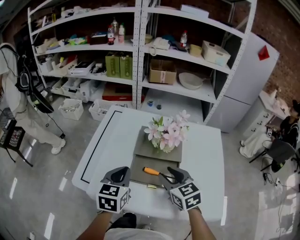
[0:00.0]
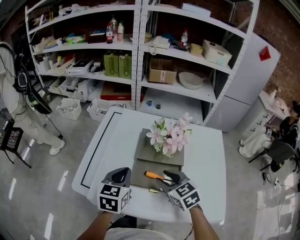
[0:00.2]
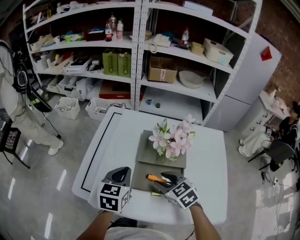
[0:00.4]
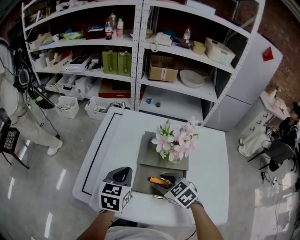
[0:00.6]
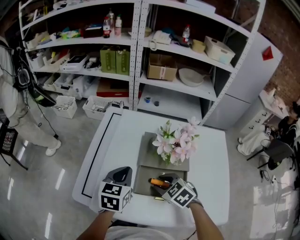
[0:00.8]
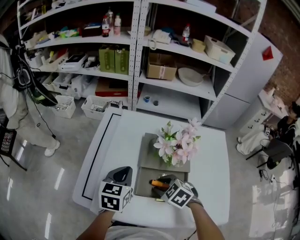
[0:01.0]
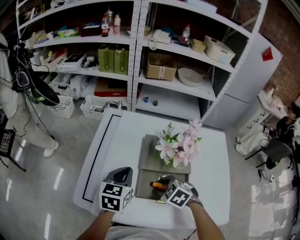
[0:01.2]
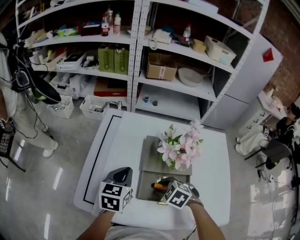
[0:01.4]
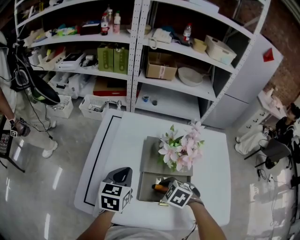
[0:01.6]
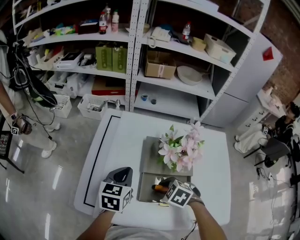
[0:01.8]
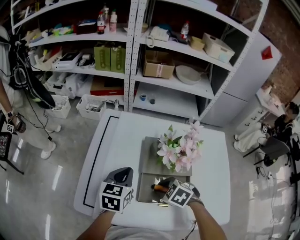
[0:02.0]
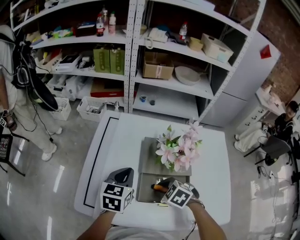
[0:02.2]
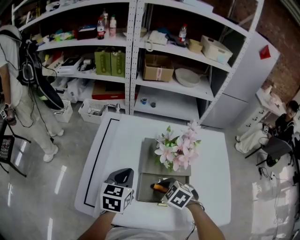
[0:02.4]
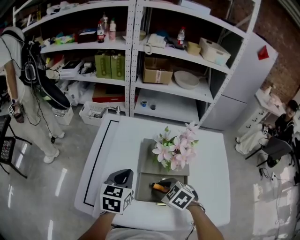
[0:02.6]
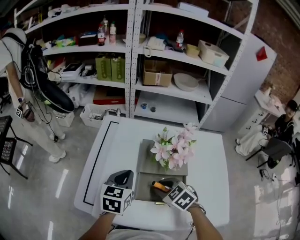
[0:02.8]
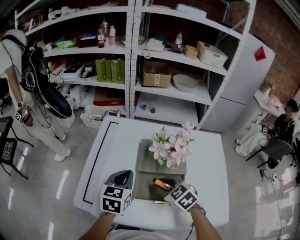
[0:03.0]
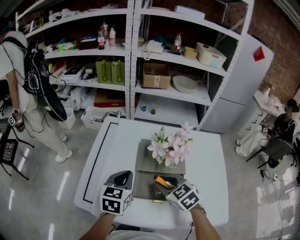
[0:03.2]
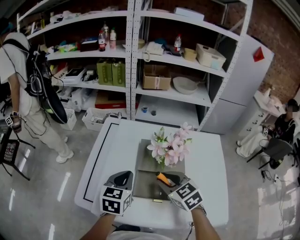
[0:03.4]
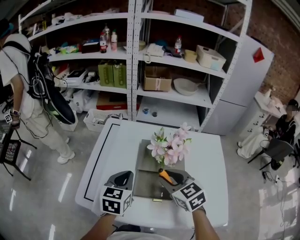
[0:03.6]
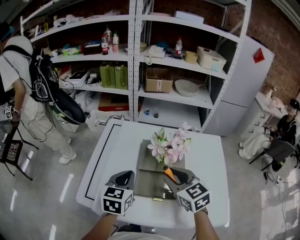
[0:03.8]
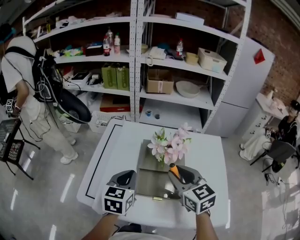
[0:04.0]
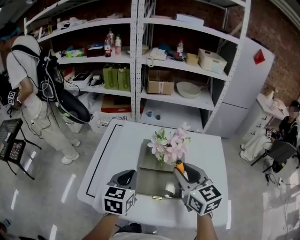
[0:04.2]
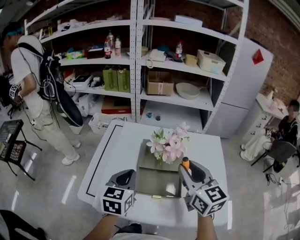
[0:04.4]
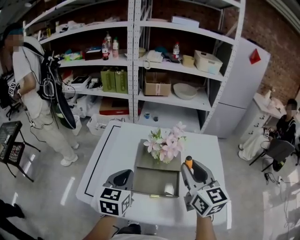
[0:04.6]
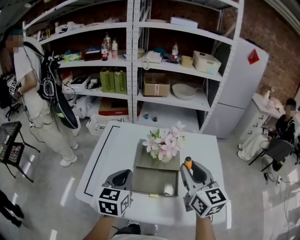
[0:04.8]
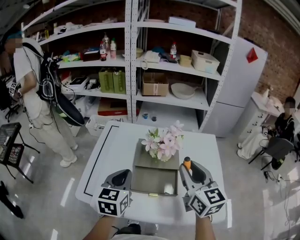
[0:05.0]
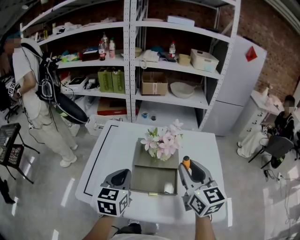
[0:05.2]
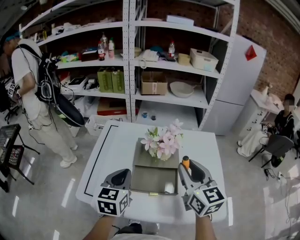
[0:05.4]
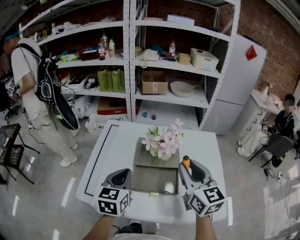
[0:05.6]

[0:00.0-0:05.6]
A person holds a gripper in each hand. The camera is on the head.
0:00.0 to 0:01.4: The left gripper moves forward, about 10 cm. Meanwhile the right gripper heads downward and to the left, covering some 15 cm, and angles its fingers downward, by approximately 40 degrees.
0:01.4 to 0:02.8: There are only small adjustments of the grippers.
0:02.8 to 0:04.2: The left gripper heads backward and upward, covering some 5 cm, while the right gripper is displaced upward by approximately 20 cm, and points its fingers roughly 40 degrees further upward.
0:04.2 to 0:05.6: The right gripper moves roughly 5 cm.

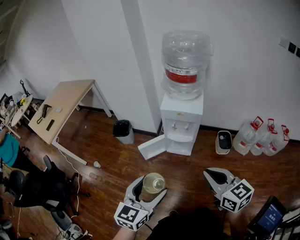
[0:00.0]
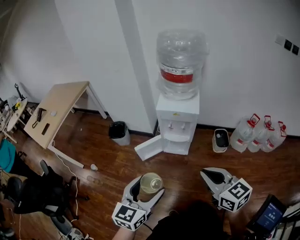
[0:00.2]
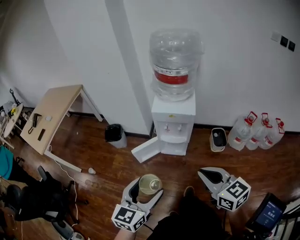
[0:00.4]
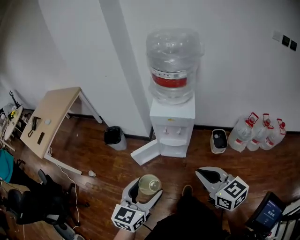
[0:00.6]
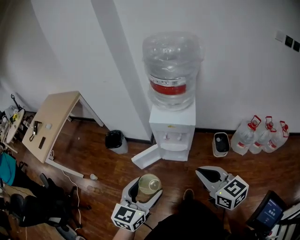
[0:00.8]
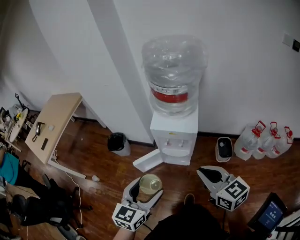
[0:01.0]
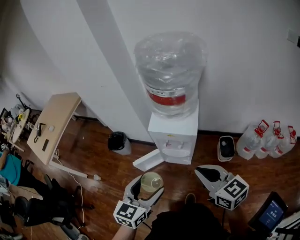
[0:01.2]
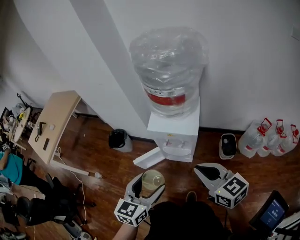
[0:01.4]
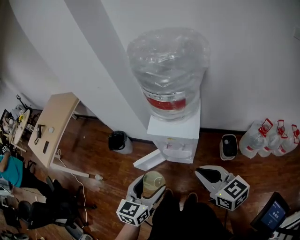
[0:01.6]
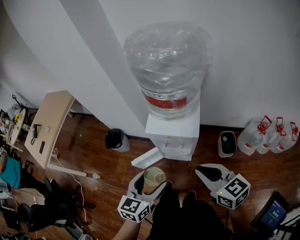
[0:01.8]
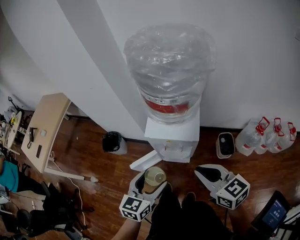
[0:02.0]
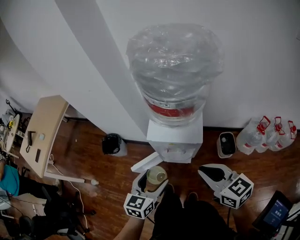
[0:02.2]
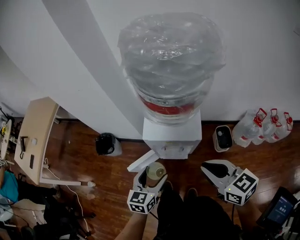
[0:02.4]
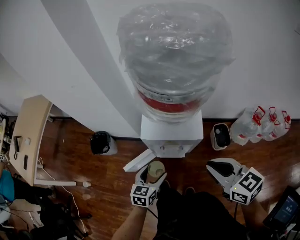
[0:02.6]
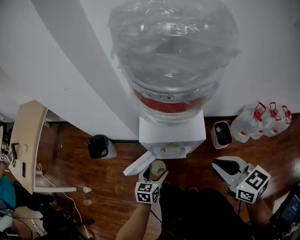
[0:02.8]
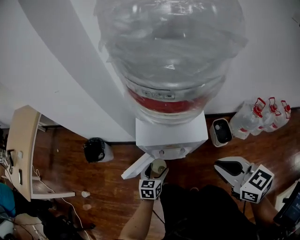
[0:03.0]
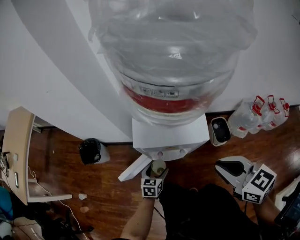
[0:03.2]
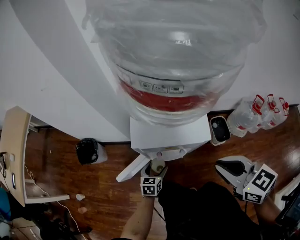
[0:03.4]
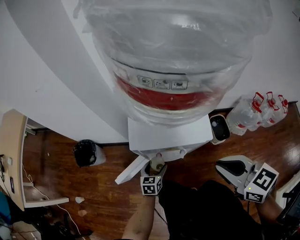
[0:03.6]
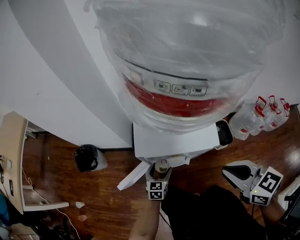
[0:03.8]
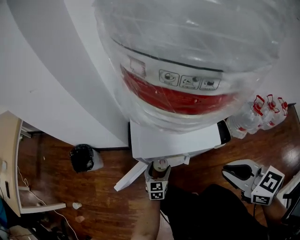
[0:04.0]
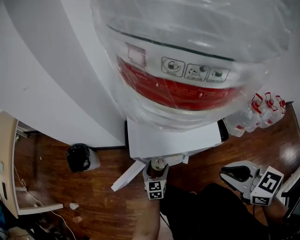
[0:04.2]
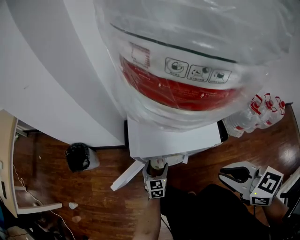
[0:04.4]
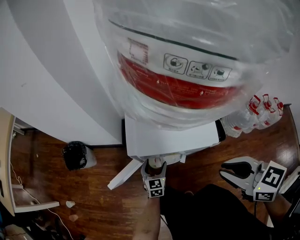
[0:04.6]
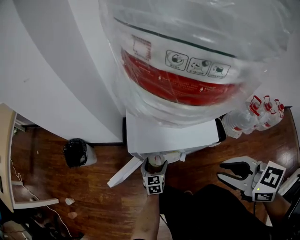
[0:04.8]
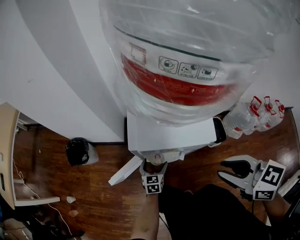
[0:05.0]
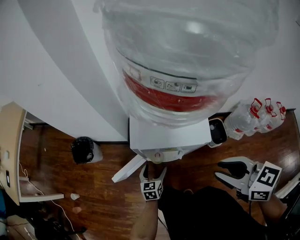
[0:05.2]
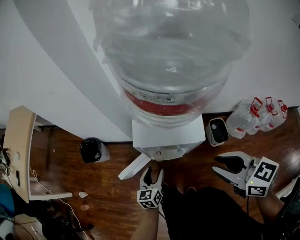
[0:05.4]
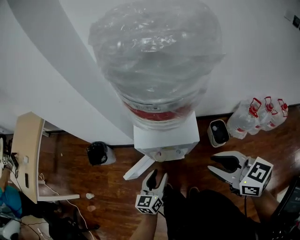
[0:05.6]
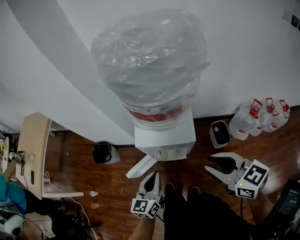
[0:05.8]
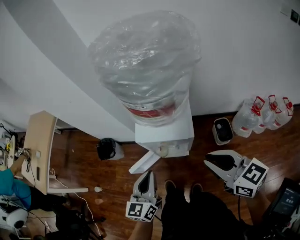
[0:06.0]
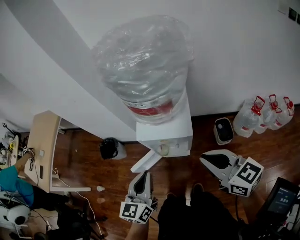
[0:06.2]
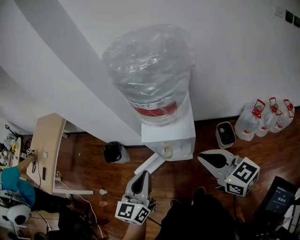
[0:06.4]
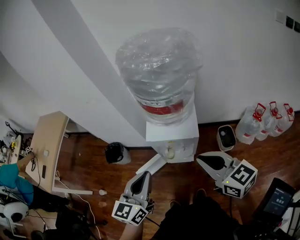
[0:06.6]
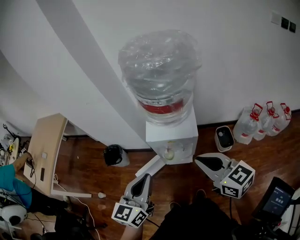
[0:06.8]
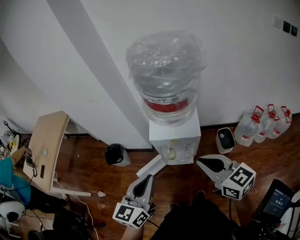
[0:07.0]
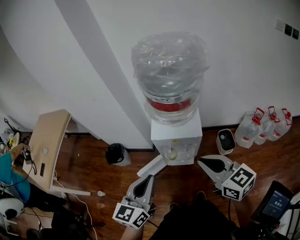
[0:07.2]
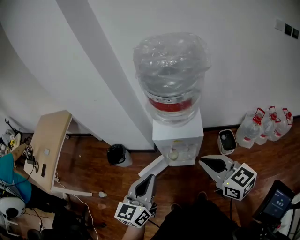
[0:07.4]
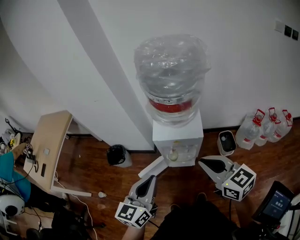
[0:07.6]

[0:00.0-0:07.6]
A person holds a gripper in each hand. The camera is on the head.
0:00.0 to 0:01.6: The grippers both shift forward by some 25 cm.
0:01.6 to 0:03.0: The right gripper is displaced forward and downward by about 15 cm, while the left gripper heads downward and forward, covering roughly 40 cm.
0:03.0 to 0:04.6: The left gripper shifts about 15 cm downward and forward. The right gripper is displaced downward by about 5 cm.
0:04.6 to 0:06.0: The left gripper heads upward, covering about 50 cm, rotates roughly 20 degrees, and closes up. The right gripper is displaced upward by about 15 cm.
0:06.0 to 0:07.6: The right gripper moves to the left and backward, some 10 cm. The left gripper is displaced upward, backward and to the left by some 15 cm.

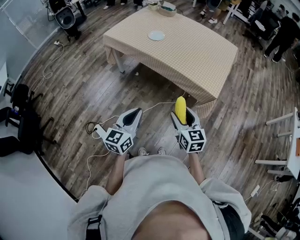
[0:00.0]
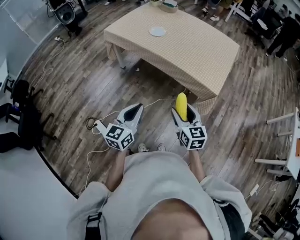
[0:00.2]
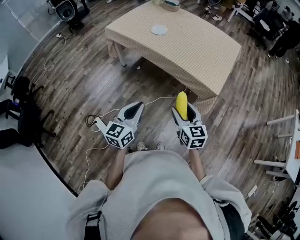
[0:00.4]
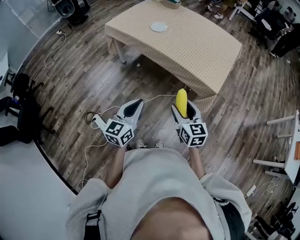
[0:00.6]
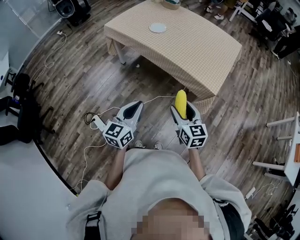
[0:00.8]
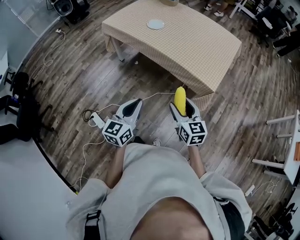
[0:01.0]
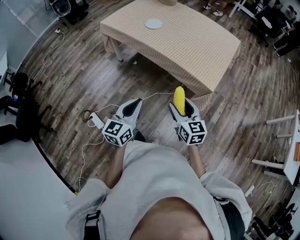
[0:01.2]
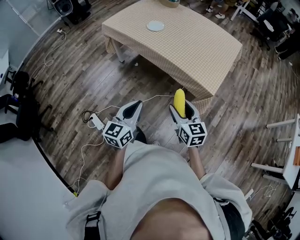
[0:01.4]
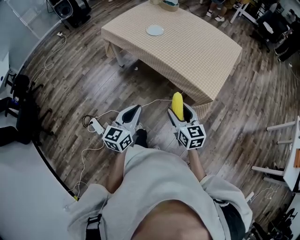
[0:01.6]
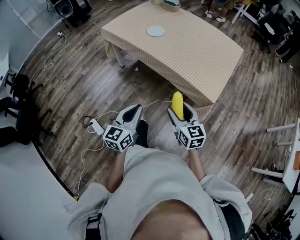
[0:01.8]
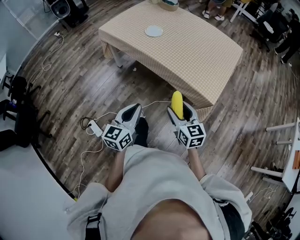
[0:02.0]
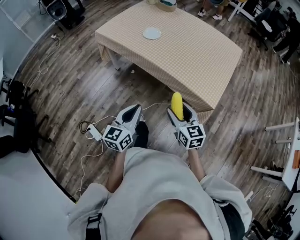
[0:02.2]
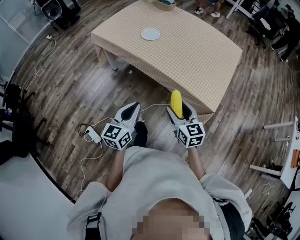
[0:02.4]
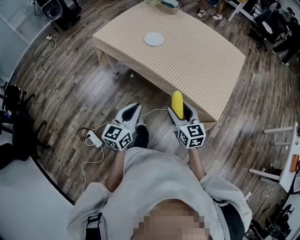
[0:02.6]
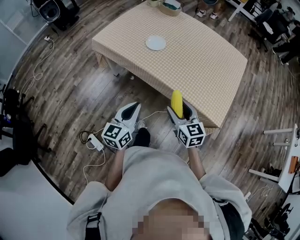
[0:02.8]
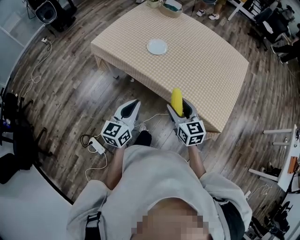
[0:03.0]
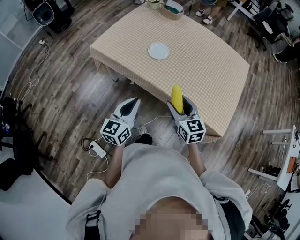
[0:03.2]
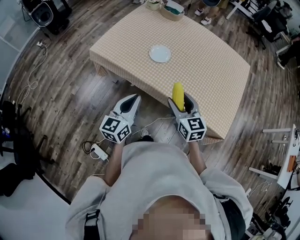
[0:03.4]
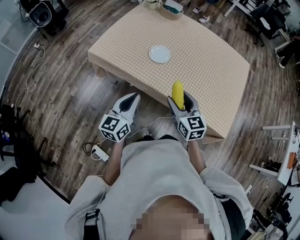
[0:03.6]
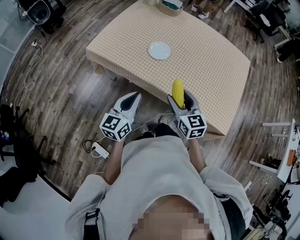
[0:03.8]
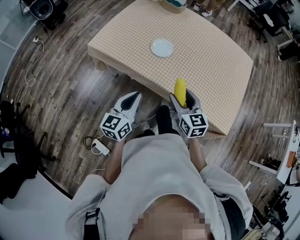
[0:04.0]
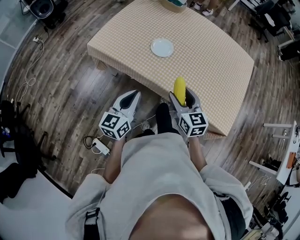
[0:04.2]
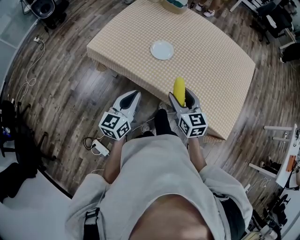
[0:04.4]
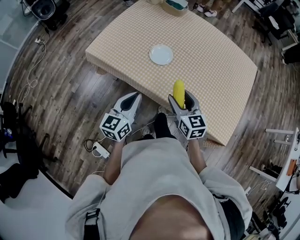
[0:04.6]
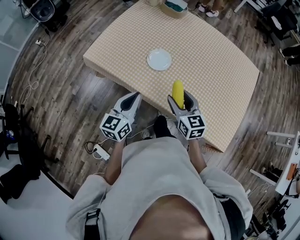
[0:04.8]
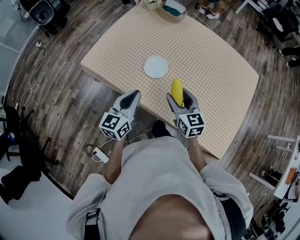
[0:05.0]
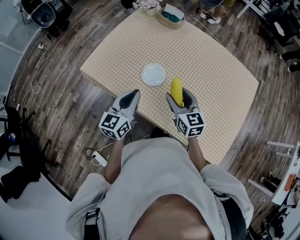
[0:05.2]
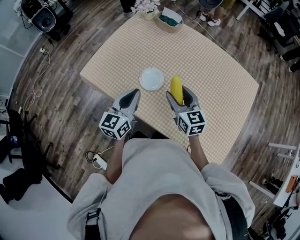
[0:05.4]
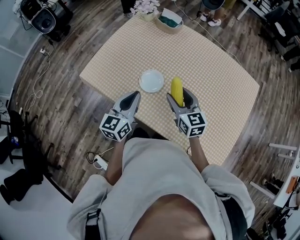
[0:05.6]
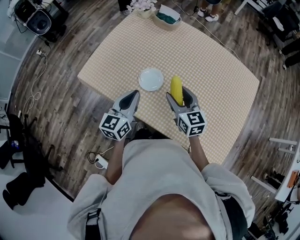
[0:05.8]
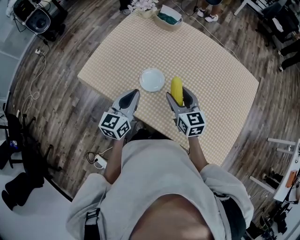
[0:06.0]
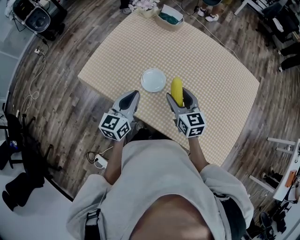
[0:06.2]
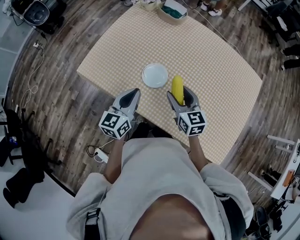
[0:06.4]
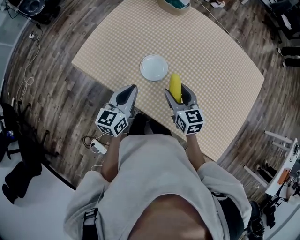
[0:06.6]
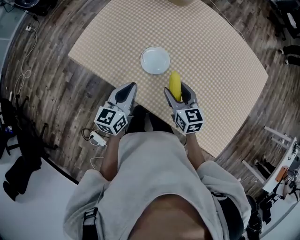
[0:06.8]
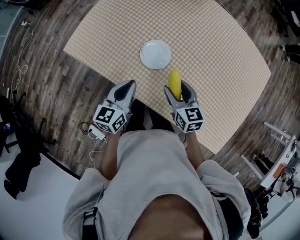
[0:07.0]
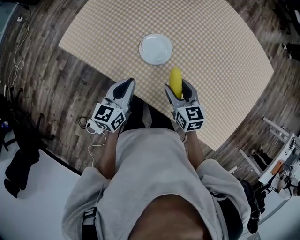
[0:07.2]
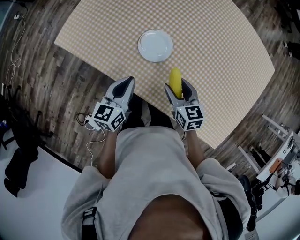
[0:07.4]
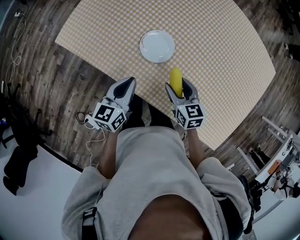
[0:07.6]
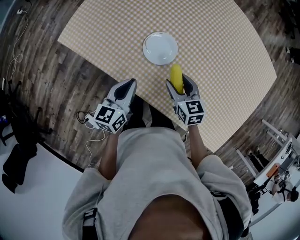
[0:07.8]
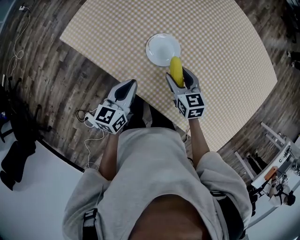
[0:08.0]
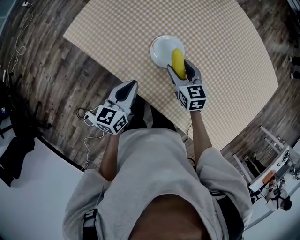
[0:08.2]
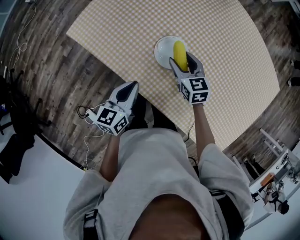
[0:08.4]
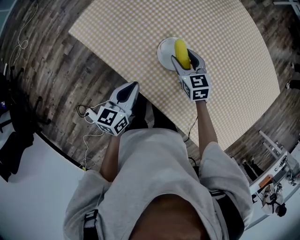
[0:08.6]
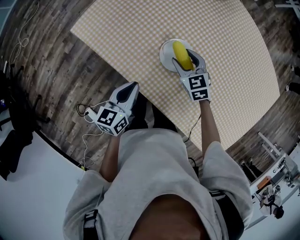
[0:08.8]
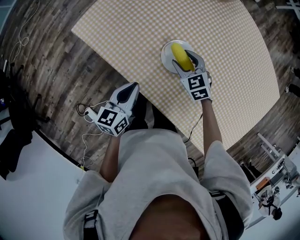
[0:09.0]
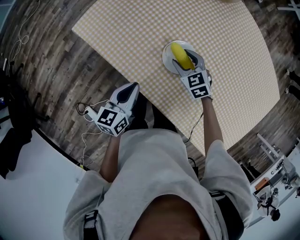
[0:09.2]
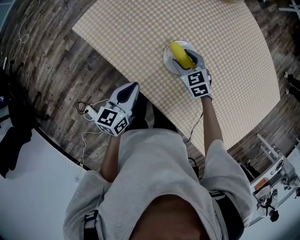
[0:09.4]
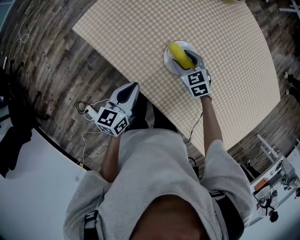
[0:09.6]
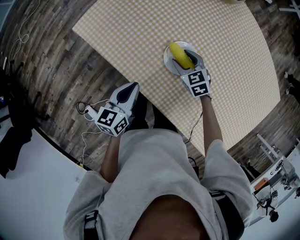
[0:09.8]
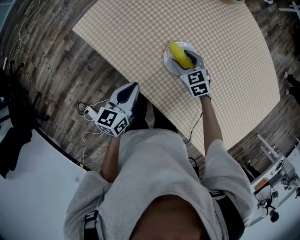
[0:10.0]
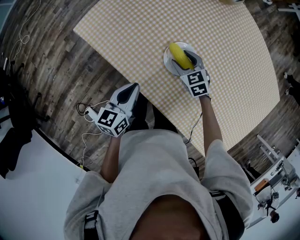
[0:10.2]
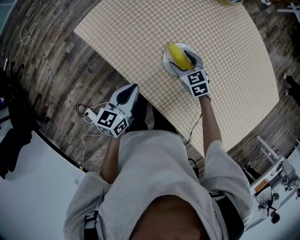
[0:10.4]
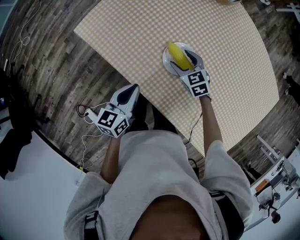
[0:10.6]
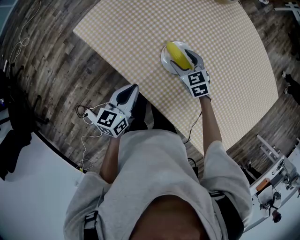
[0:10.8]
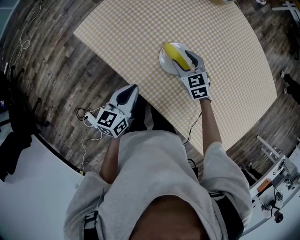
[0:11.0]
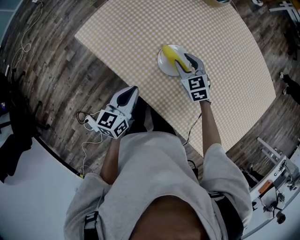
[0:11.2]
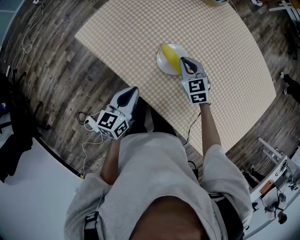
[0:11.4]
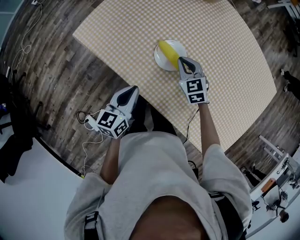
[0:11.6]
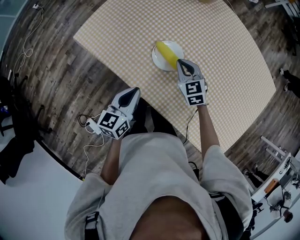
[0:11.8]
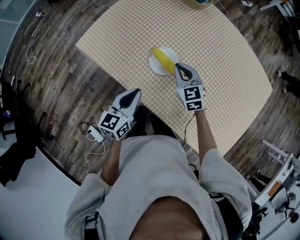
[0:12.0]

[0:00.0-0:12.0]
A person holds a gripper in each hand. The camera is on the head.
0:00.0 to 0:01.6: The left gripper goes about 5 cm to the right; the right gripper ends up some 5 cm from where it was.
0:01.6 to 0:03.0: The two grippers go roughly 30 cm forward.
0:03.0 to 0:04.4: Both grippers travel together forward, roughly 15 cm.
0:04.4 to 0:06.0: The two grippers go some 20 cm forward.
0:06.0 to 0:07.6: The grippers both shift downward by about 15 cm. The right gripper rotates approximately 20 degrees.
0:07.6 to 0:09.0: The right gripper goes roughly 15 cm forward and to the left, and changes its angle by approximately 40 degrees, while the left gripper moves to the left, approximately 5 cm.
0:09.0 to 0:10.4: The grippers make only small movements.
0:10.4 to 0:12.0: The right gripper heads upward, to the right and backward, covering about 15 cm, changes its angle by approximately 20 degrees, and closes; the left gripper is displaced to the right and upward by approximately 10 cm.
